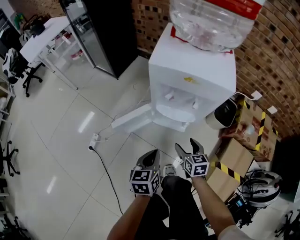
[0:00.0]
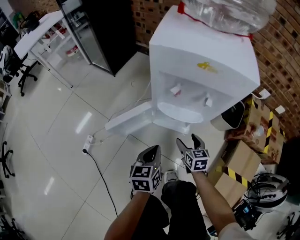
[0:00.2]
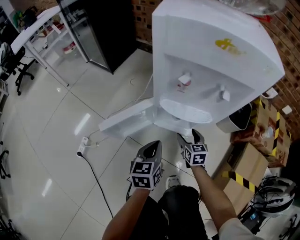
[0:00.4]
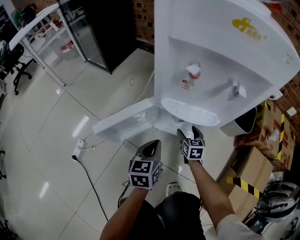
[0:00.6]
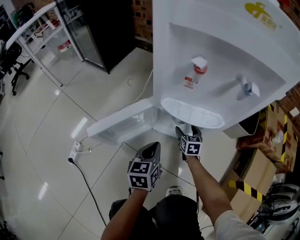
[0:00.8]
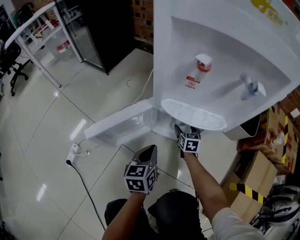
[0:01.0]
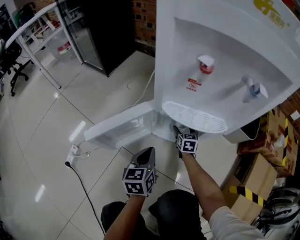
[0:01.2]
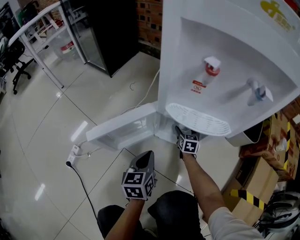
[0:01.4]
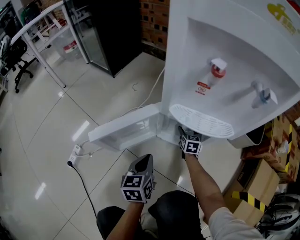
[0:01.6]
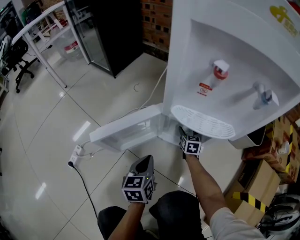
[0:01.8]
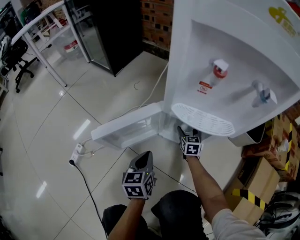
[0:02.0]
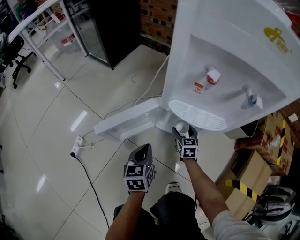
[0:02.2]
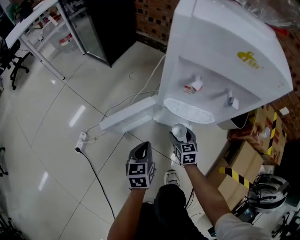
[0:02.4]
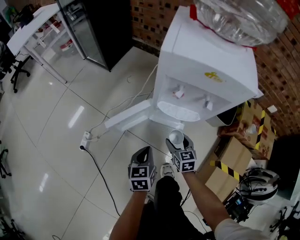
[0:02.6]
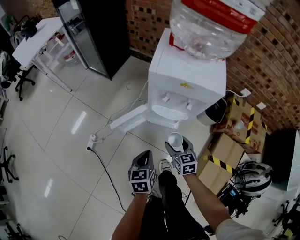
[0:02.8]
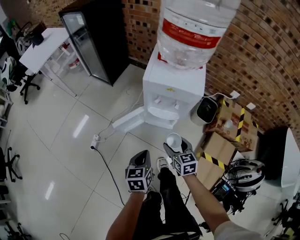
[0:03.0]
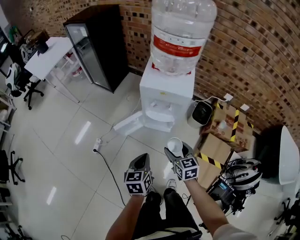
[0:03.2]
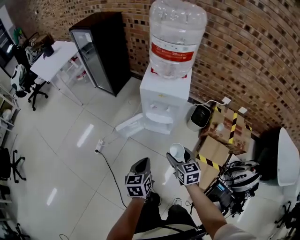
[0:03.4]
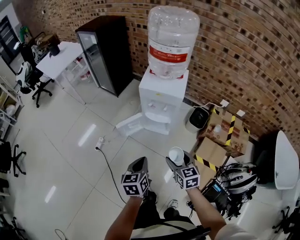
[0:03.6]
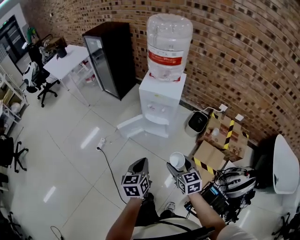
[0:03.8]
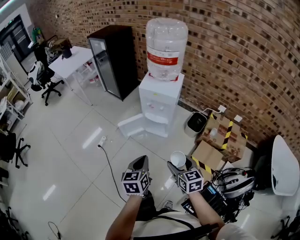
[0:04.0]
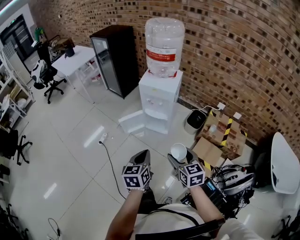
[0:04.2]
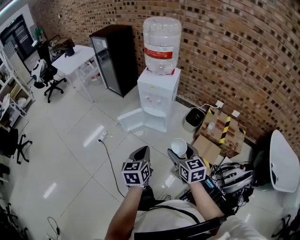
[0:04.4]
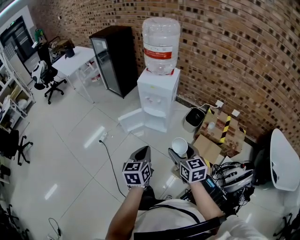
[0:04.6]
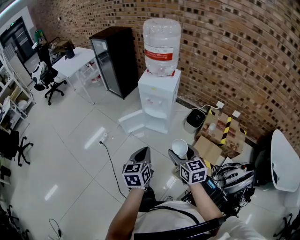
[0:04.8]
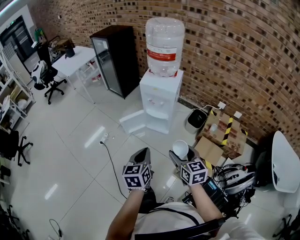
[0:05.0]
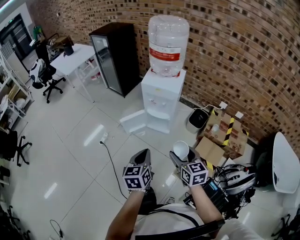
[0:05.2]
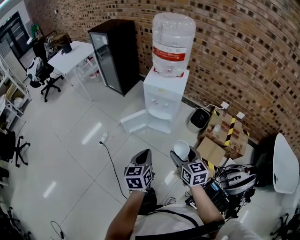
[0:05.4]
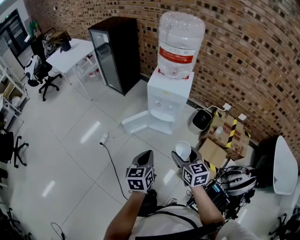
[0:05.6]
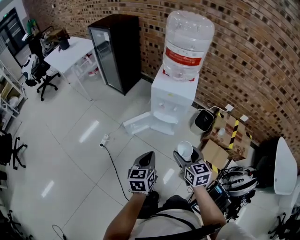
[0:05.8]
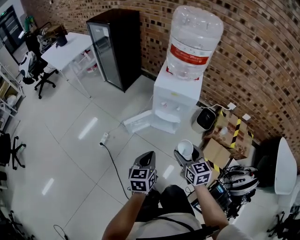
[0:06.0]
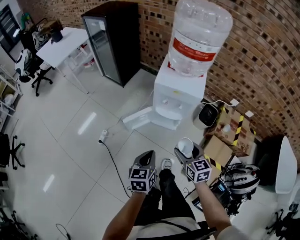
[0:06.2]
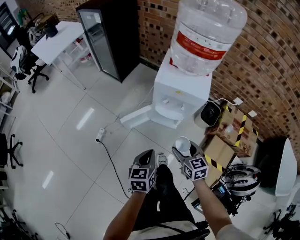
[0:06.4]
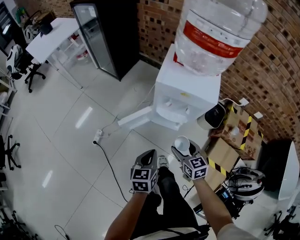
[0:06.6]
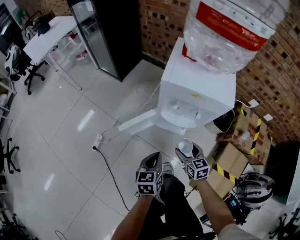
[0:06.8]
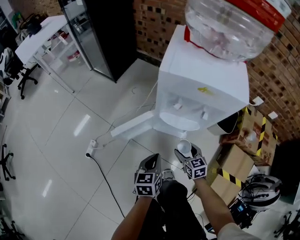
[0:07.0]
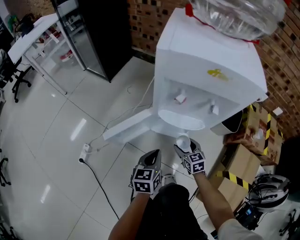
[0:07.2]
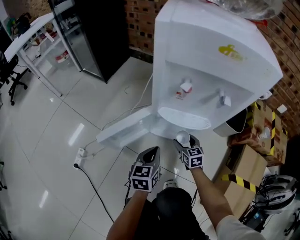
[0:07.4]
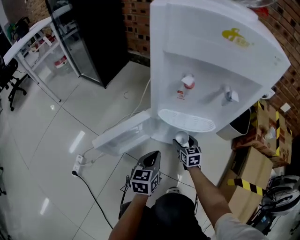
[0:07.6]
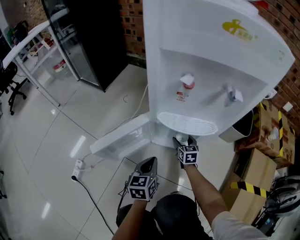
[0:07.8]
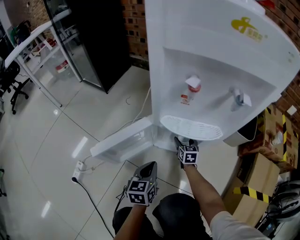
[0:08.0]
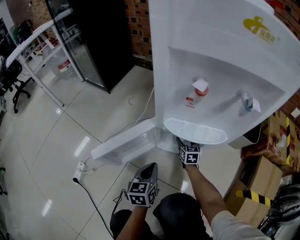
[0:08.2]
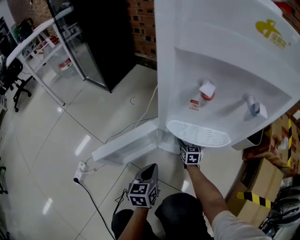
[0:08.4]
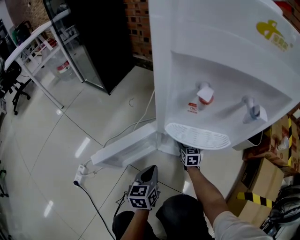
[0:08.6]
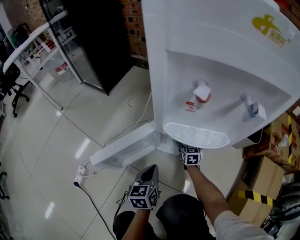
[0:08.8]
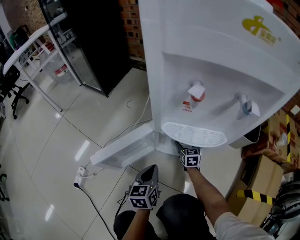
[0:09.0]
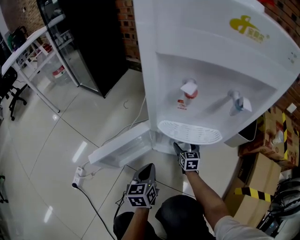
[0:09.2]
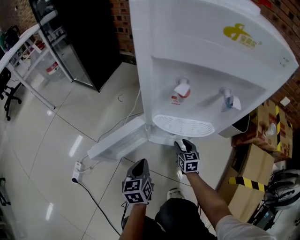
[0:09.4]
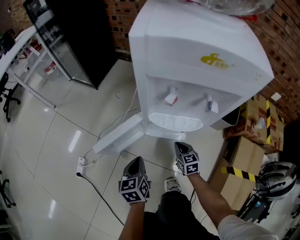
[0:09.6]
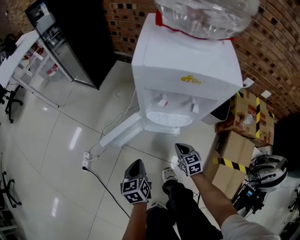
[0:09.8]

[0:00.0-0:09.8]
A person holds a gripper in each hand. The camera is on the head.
0:00.0 to 0:01.4: The grippers both shift downward and forward by roughly 35 cm.
0:01.4 to 0:02.8: Both grippers move upward and backward, approximately 40 cm.
0:02.8 to 0:04.2: Both grippers travel together upward and backward, some 40 cm.
0:04.2 to 0:05.6: The two grippers go some 10 cm forward and to the left.
0:05.6 to 0:07.0: The grippers both shift downward and forward by about 50 cm.
0:07.0 to 0:08.4: The left gripper goes some 25 cm downward. The right gripper shifts roughly 35 cm downward and forward.
0:08.4 to 0:09.8: The left gripper shifts about 20 cm upward and backward, while the right gripper travels upward and backward by about 35 cm, and closes up.

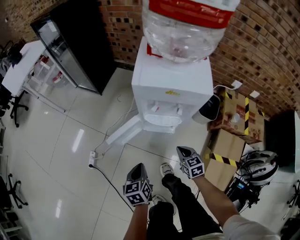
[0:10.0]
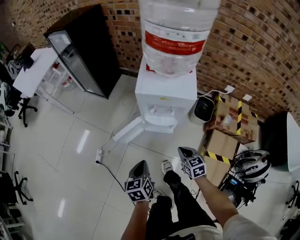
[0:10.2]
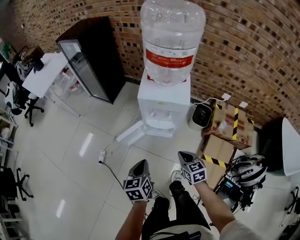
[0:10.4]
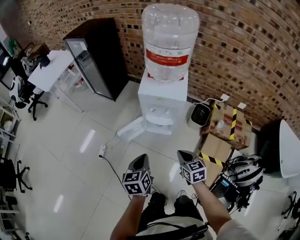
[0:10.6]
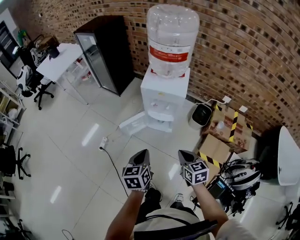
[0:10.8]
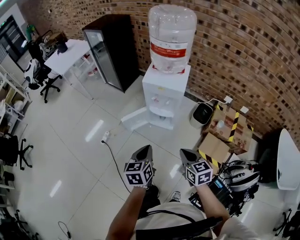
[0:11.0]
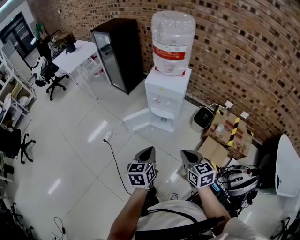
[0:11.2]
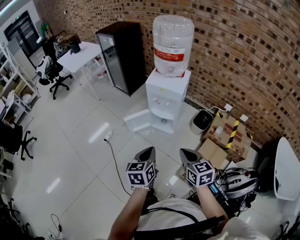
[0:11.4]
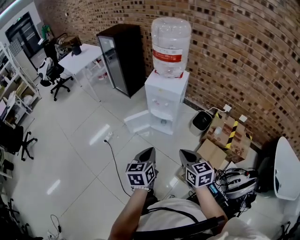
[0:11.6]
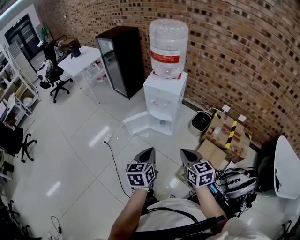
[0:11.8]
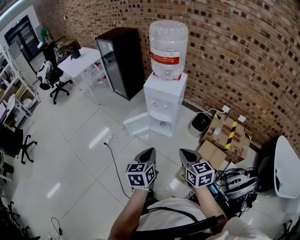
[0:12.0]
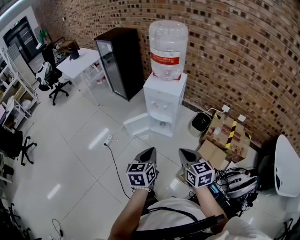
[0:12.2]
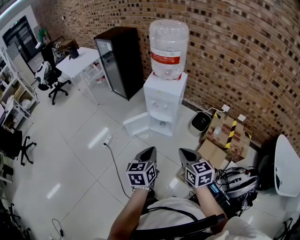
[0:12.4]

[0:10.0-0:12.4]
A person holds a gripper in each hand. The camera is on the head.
0:10.0 to 0:11.2: Both grippers move upward and backward, roughly 40 cm.
0:11.2 to 0:12.4: The left gripper shifts by about 5 cm.

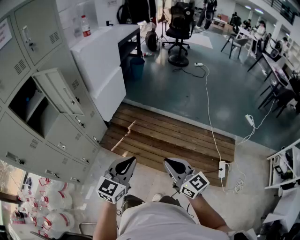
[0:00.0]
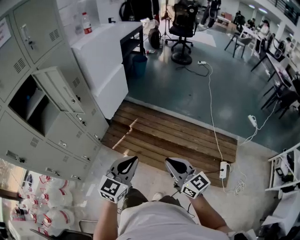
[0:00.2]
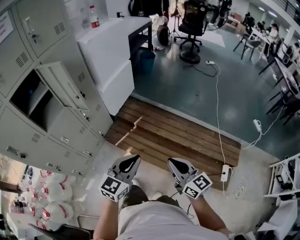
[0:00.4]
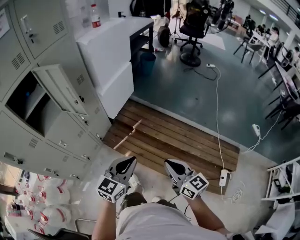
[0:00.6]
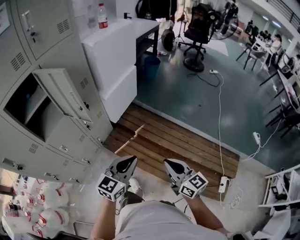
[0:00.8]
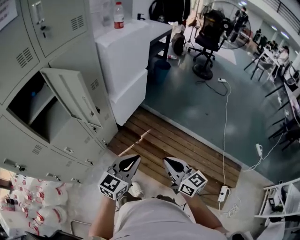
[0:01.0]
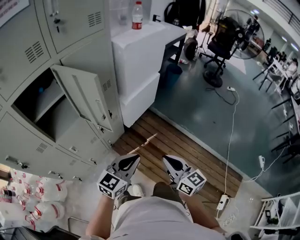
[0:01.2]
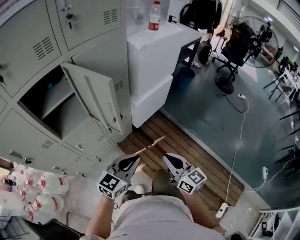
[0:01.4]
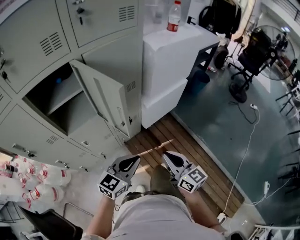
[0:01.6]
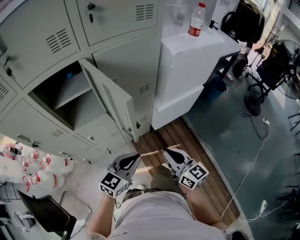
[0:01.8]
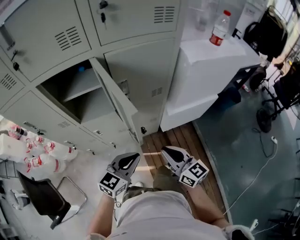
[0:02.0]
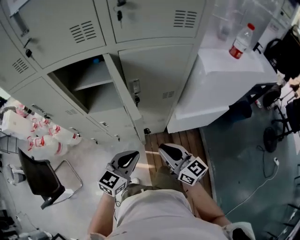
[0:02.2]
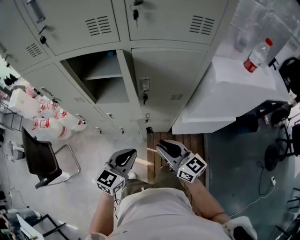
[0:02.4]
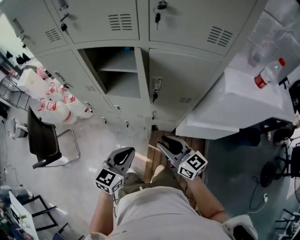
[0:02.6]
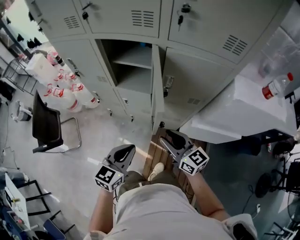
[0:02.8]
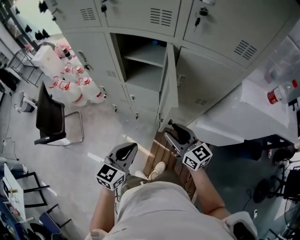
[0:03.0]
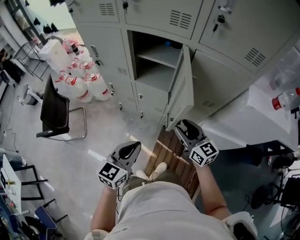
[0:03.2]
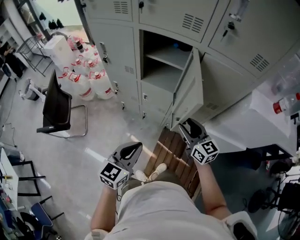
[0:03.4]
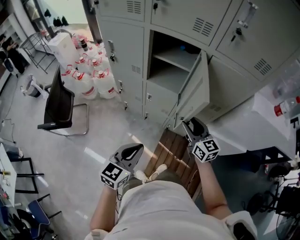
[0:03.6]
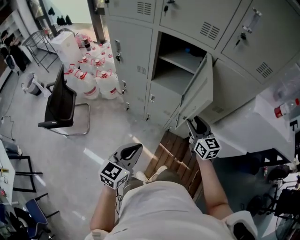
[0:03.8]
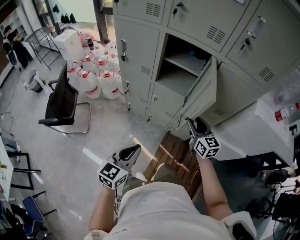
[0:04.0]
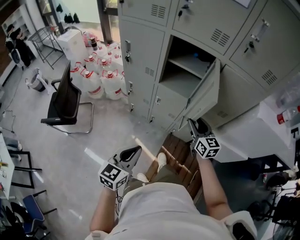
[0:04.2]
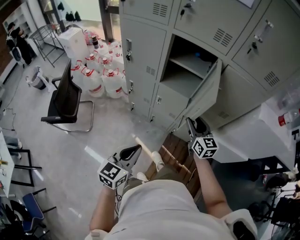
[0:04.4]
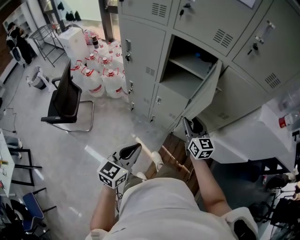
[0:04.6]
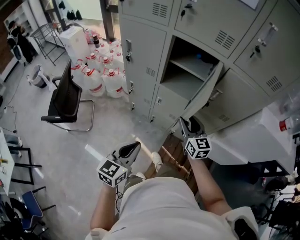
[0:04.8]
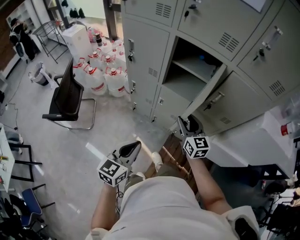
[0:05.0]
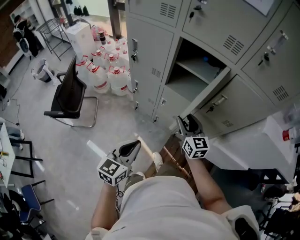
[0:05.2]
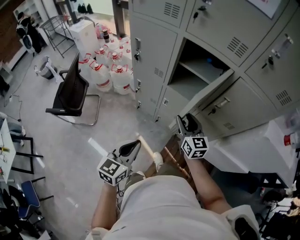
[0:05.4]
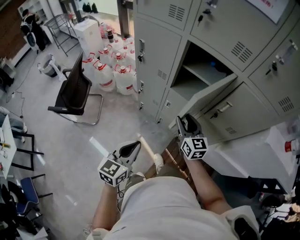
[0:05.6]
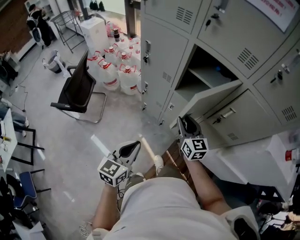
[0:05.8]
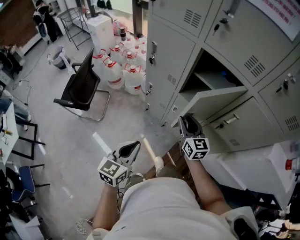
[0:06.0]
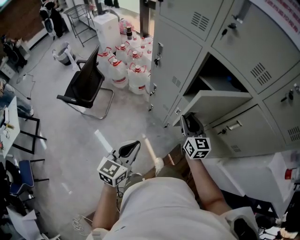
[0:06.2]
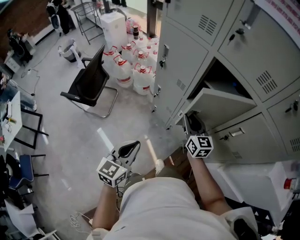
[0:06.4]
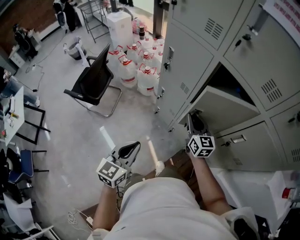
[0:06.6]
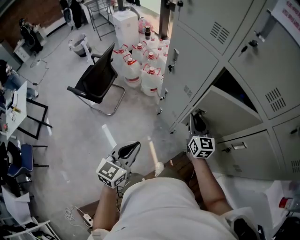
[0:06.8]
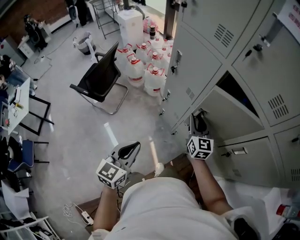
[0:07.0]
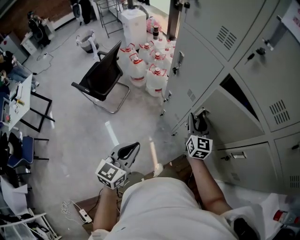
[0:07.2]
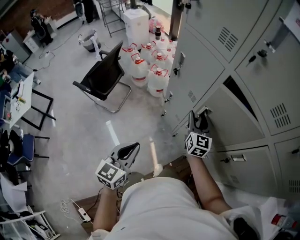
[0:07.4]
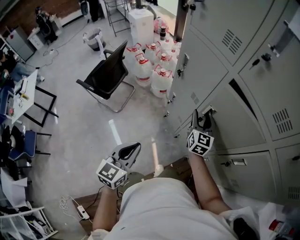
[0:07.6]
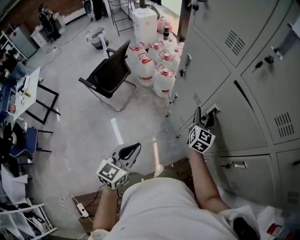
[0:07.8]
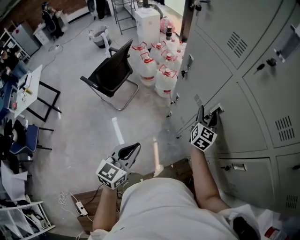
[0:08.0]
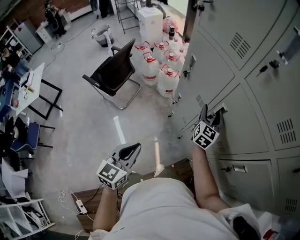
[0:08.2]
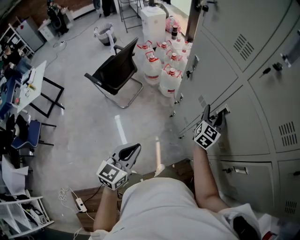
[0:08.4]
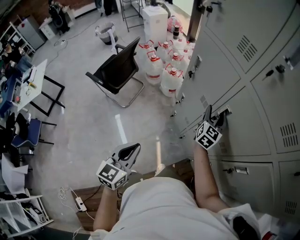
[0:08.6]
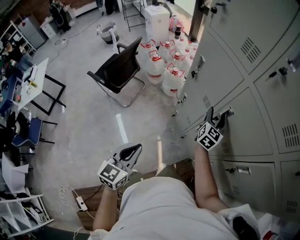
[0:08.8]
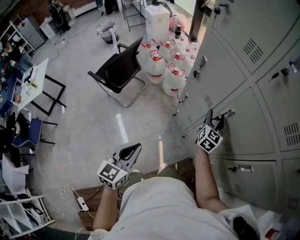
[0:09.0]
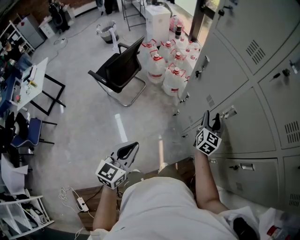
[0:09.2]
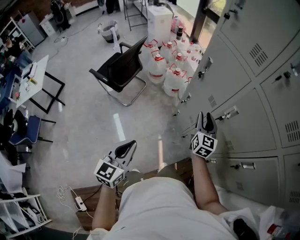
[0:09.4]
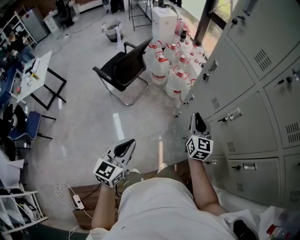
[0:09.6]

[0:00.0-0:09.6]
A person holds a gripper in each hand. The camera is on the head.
0:00.0 to 0:01.6: The grippers both shift forward and to the left by about 40 cm. The right gripper turns by about 30 degrees, while the left gripper swivels approximately 20 degrees.
0:01.6 to 0:03.2: The right gripper changes place by approximately 20 cm, swivels roughly 60 degrees, and opens its fingers; the left gripper shifts about 10 cm upward, and turns by some 60 degrees.
0:03.2 to 0:04.8: The grippers both shift to the left by some 10 cm.
0:04.8 to 0:06.4: The right gripper shifts roughly 15 cm forward and to the left; the left gripper moves forward and to the left, roughly 10 cm, and rotates about 20 degrees.
0:06.4 to 0:08.0: The right gripper goes some 15 cm forward, and opens.
0:08.0 to 0:09.6: Both grippers move to the left and backward, some 15 cm. The right gripper rotates about 20 degrees, and closes its fingers.

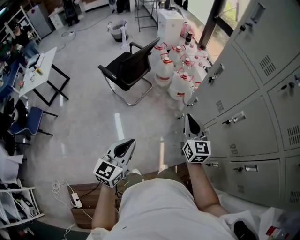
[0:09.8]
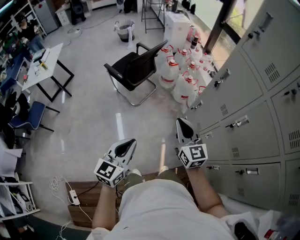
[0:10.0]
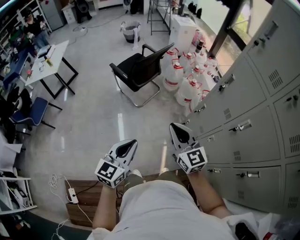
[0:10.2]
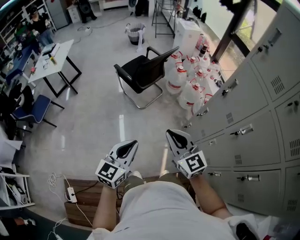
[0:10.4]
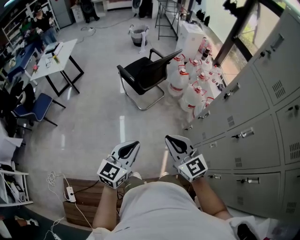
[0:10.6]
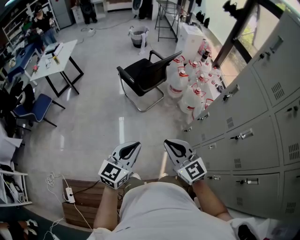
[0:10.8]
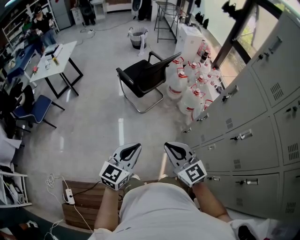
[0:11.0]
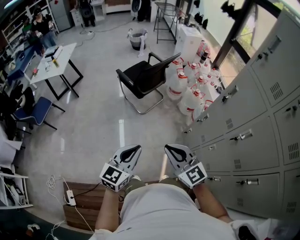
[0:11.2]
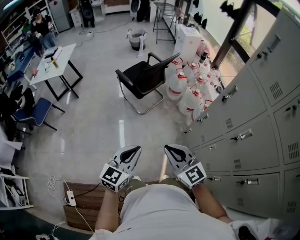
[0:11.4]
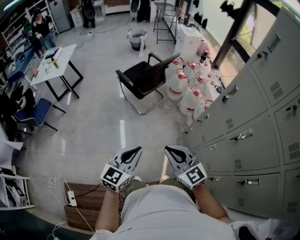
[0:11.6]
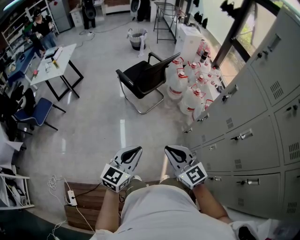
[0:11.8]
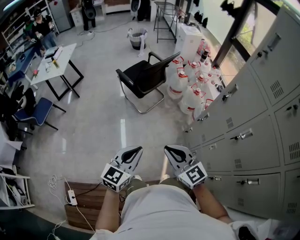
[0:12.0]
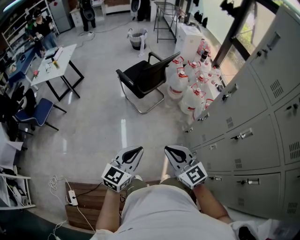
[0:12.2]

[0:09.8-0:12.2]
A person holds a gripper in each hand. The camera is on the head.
0:09.8 to 0:11.0: The right gripper goes about 25 cm to the left and backward, and turns by some 40 degrees. The left gripper shifts about 5 cm to the left.
0:11.0 to 0:12.2: The grippers make only small movements.
